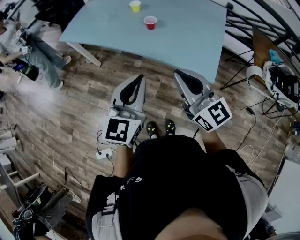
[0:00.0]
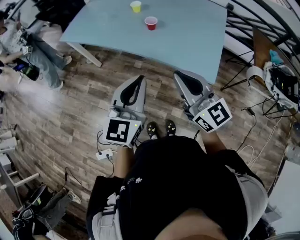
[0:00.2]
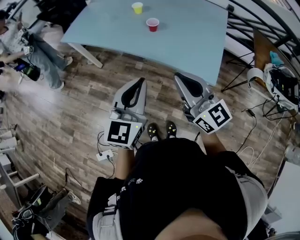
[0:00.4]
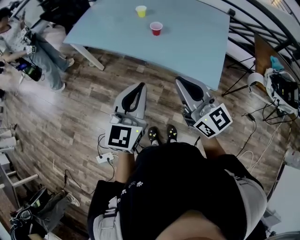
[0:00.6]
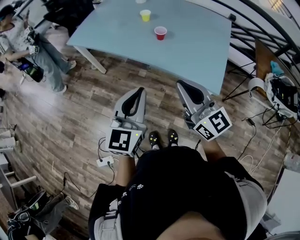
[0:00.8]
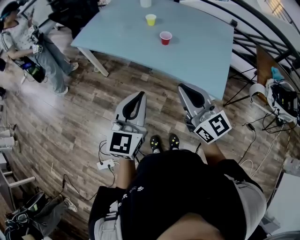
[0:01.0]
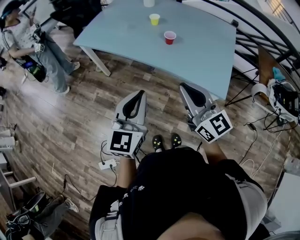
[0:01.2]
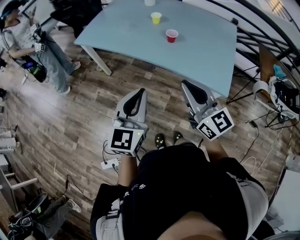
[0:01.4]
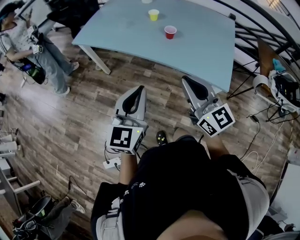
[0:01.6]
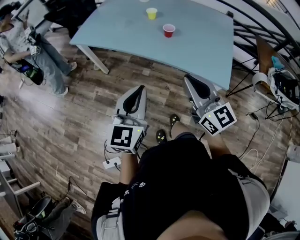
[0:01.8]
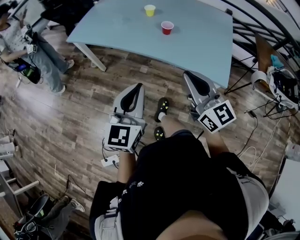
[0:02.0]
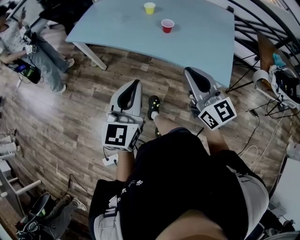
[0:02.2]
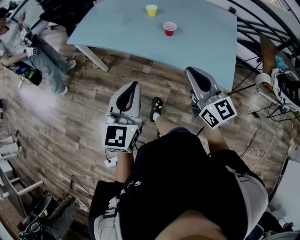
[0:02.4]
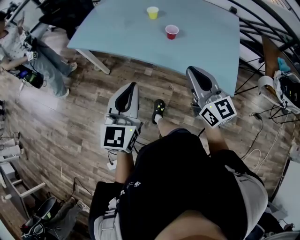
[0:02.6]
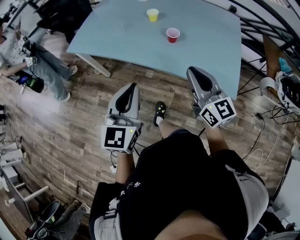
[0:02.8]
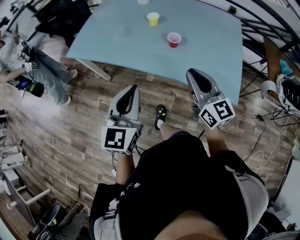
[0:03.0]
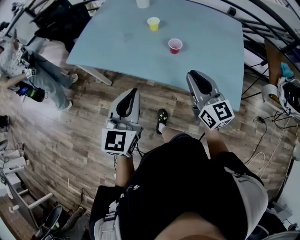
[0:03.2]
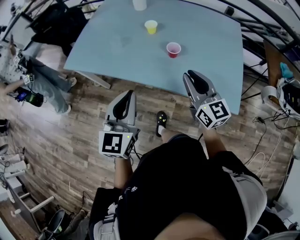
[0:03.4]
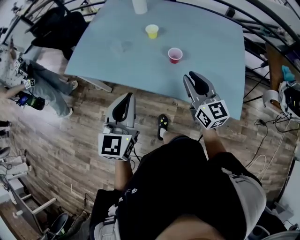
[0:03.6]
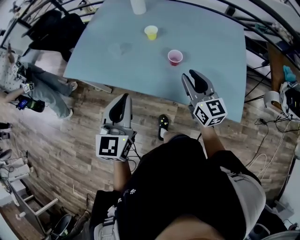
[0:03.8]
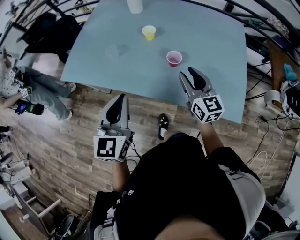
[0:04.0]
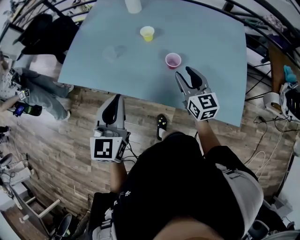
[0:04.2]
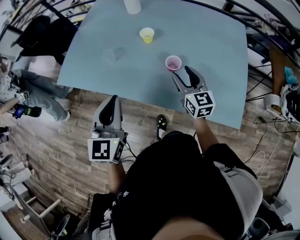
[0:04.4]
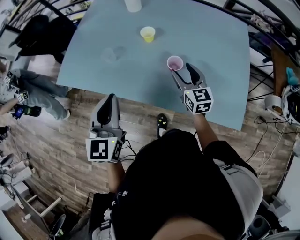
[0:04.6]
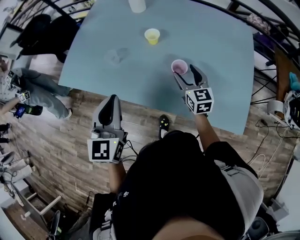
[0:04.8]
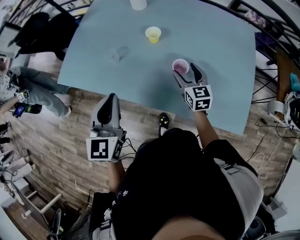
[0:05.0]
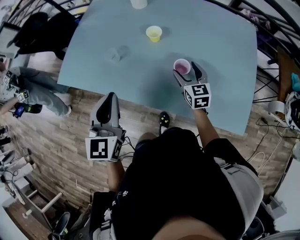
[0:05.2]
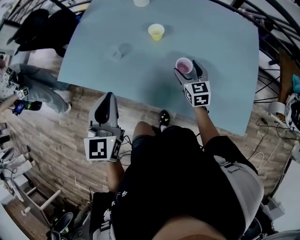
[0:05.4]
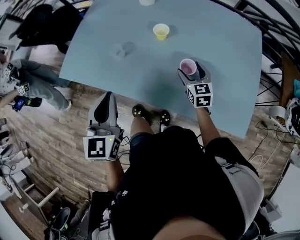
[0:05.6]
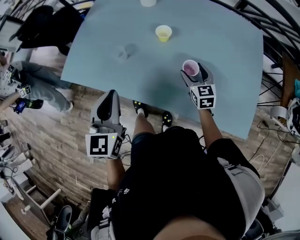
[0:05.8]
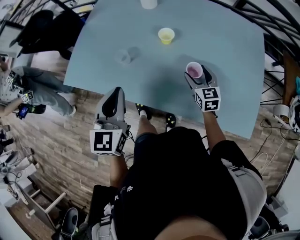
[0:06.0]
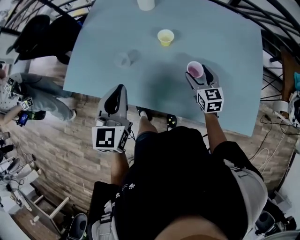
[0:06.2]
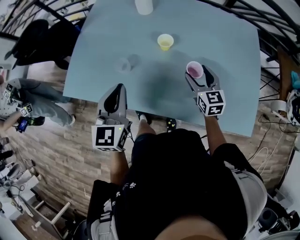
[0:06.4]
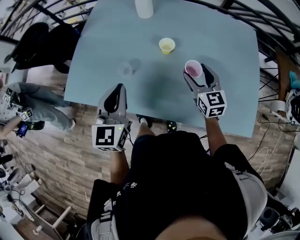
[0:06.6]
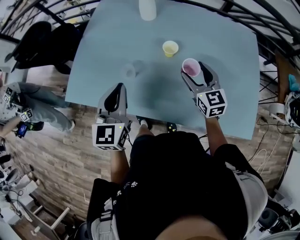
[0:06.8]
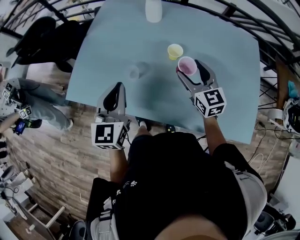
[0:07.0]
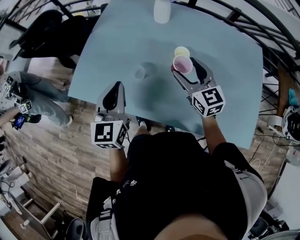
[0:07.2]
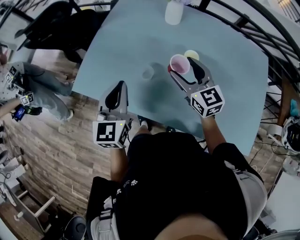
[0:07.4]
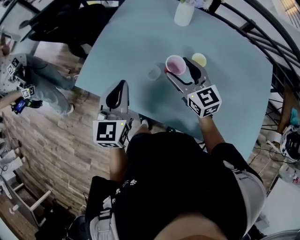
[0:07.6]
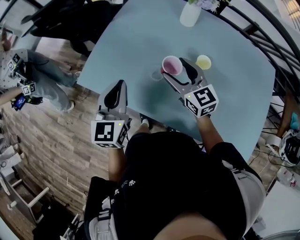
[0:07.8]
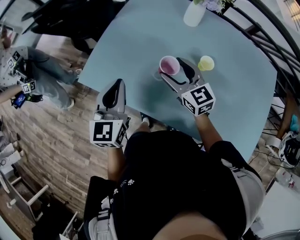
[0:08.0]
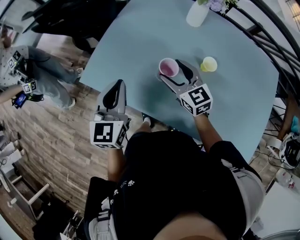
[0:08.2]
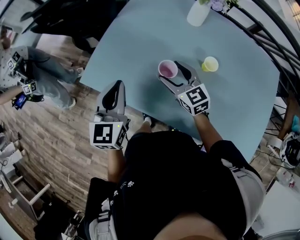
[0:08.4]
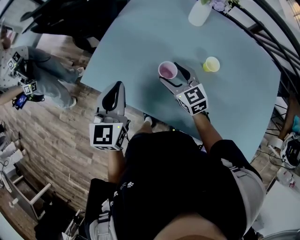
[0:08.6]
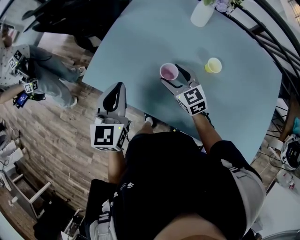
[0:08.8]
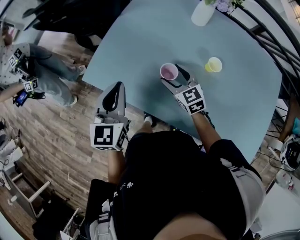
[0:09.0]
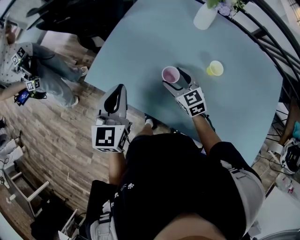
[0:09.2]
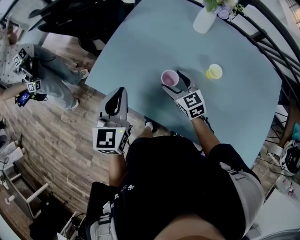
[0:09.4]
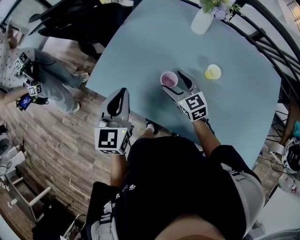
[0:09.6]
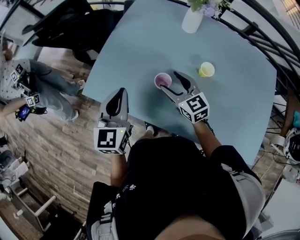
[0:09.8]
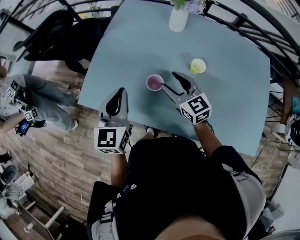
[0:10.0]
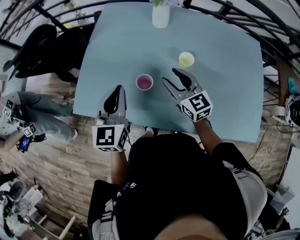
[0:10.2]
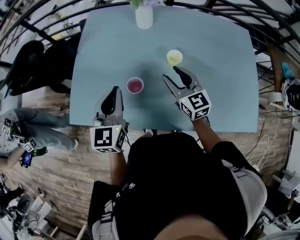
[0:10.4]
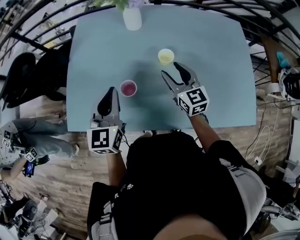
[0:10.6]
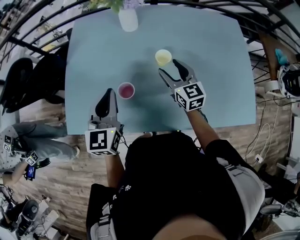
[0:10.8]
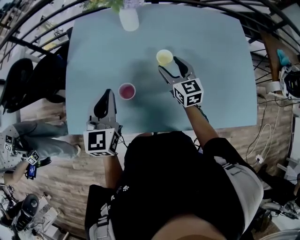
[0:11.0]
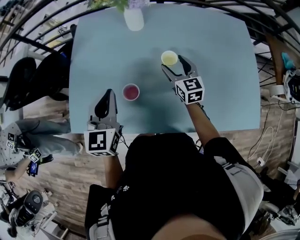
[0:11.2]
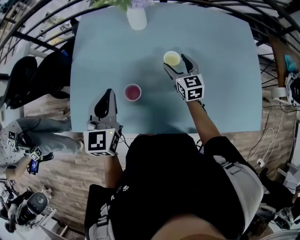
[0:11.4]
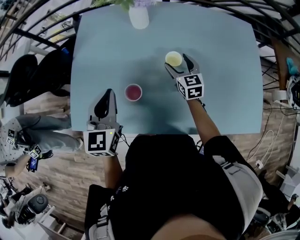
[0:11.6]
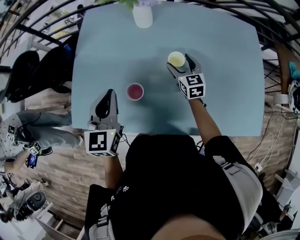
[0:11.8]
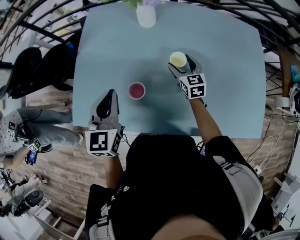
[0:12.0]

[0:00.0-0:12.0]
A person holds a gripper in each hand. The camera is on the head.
0.0 to 1.6 s: The grippers both shift to the left by some 10 cm.
1.6 to 3.0 s: The two grippers go roughly 15 cm forward.
3.0 to 4.4 s: The right gripper is displaced forward and downward by roughly 25 cm, and opens its fingers; the left gripper travels forward by some 20 cm.
4.4 to 6.0 s: The right gripper moves forward and downward, approximately 10 cm. Meanwhile the left gripper moves forward and to the left, roughly 10 cm.
6.0 to 7.6 s: The right gripper travels to the left, upward and forward by roughly 30 cm, and changes its angle by about 30 degrees. Meanwhile the left gripper moves to the left and forward, about 20 cm.
7.6 to 9.0 s: The right gripper is displaced downward and to the left by roughly 15 cm; the left gripper heads to the left, covering about 5 cm.
9.0 to 10.4 s: The right gripper heads to the right and upward, covering about 15 cm, swivels roughly 30 degrees, and closes its fingers; the left gripper goes about 10 cm to the right, and turns by some 20 degrees.
10.4 to 12.0 s: The right gripper travels forward, downward and to the right by approximately 15 cm, and opens up.

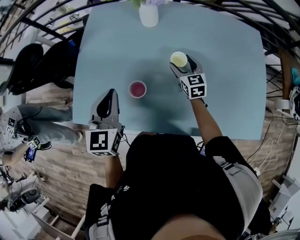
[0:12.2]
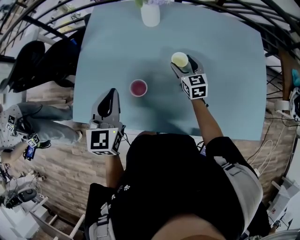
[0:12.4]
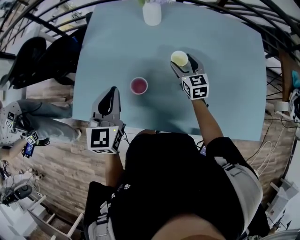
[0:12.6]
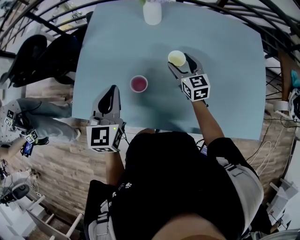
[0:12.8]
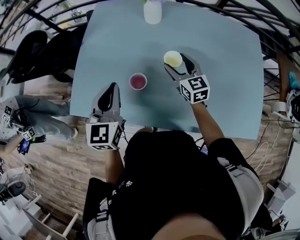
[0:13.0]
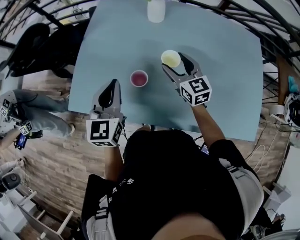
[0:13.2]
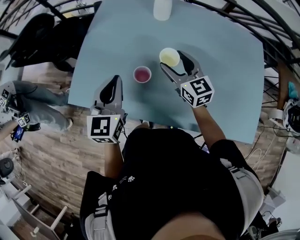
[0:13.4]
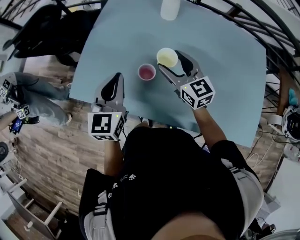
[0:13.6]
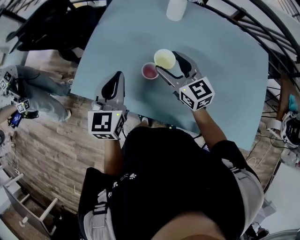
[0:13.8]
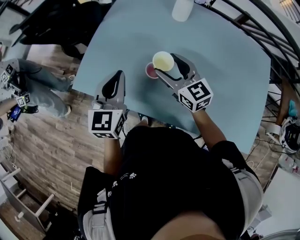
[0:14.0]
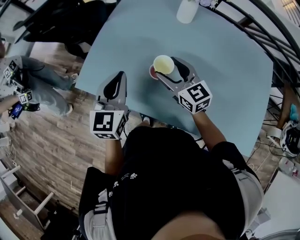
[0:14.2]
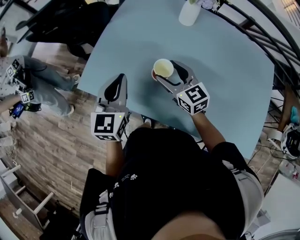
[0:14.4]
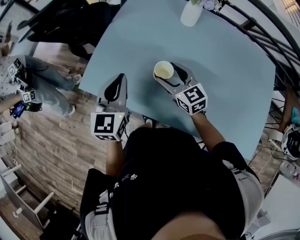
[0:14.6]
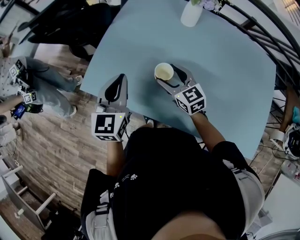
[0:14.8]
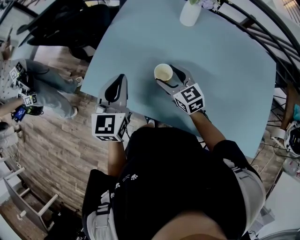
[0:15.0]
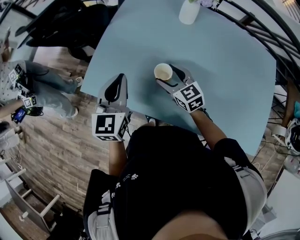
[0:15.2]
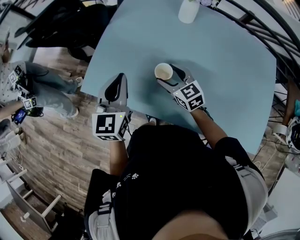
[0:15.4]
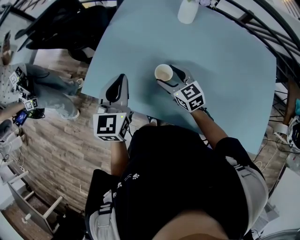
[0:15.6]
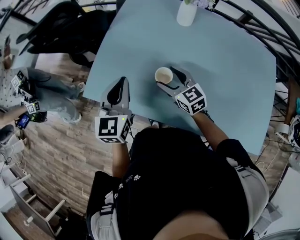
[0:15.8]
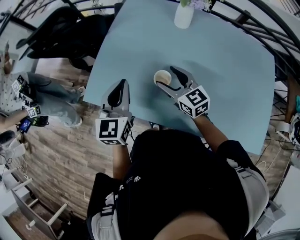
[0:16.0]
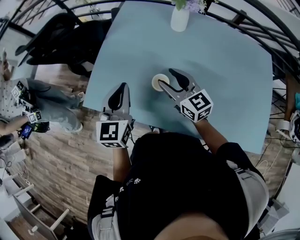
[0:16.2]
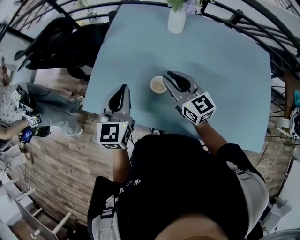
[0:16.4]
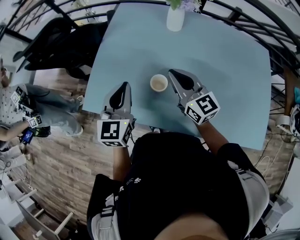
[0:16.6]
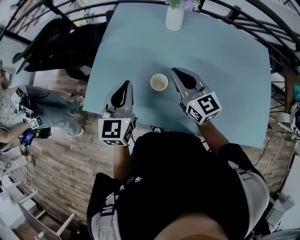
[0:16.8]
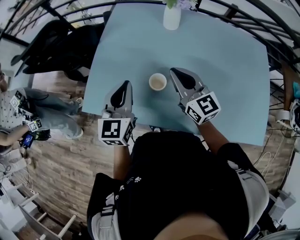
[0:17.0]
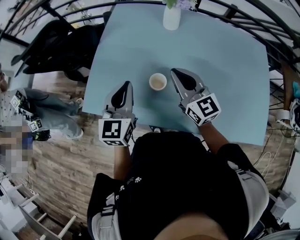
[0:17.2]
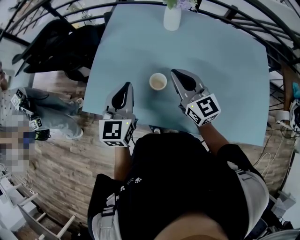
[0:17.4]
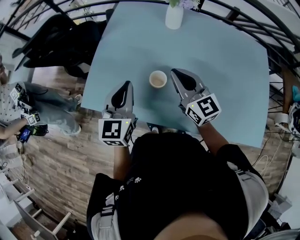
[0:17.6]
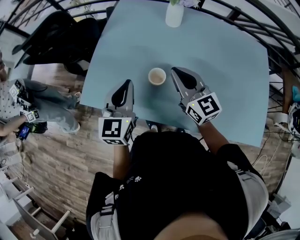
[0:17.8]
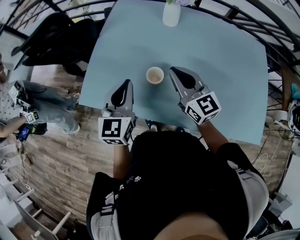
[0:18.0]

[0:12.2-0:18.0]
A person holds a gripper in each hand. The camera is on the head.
12.2 to 13.6 s: The left gripper shifts by about 5 cm; the right gripper moves to the left, upward and backward, about 20 cm, and swivels some 30 degrees.
13.6 to 15.0 s: The right gripper shifts roughly 10 cm to the left and downward; the left gripper travels to the left by some 5 cm.
15.0 to 16.6 s: The right gripper moves upward, some 10 cm, rotates roughly 20 degrees, and closes its fingers.
16.6 to 18.0 s: The grippers make only small movements.

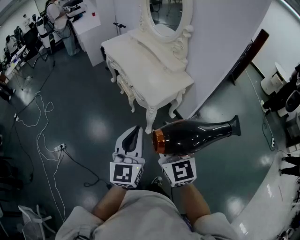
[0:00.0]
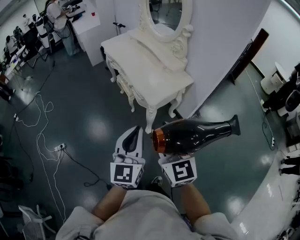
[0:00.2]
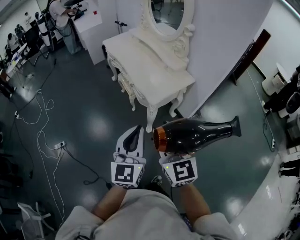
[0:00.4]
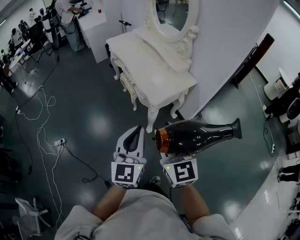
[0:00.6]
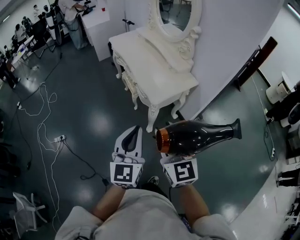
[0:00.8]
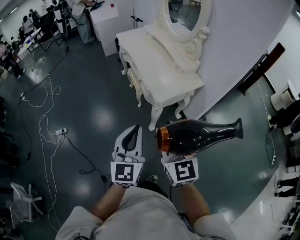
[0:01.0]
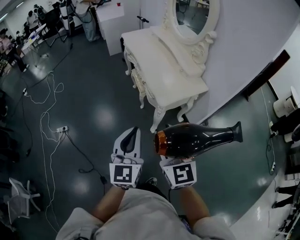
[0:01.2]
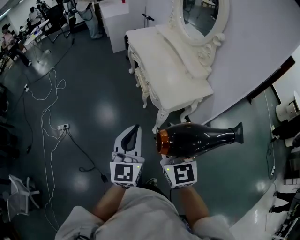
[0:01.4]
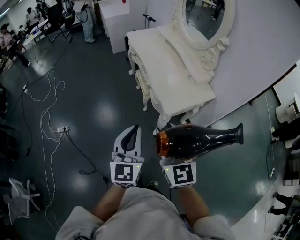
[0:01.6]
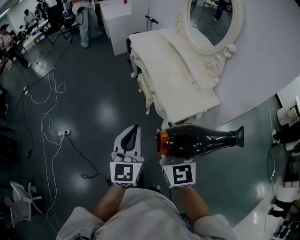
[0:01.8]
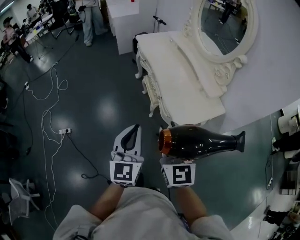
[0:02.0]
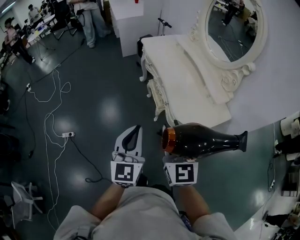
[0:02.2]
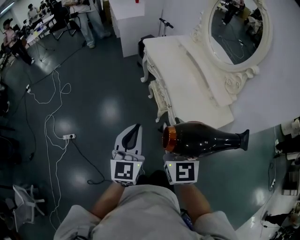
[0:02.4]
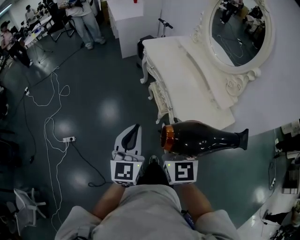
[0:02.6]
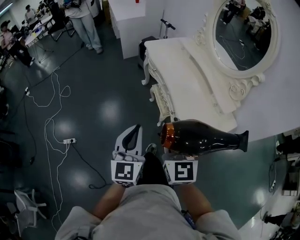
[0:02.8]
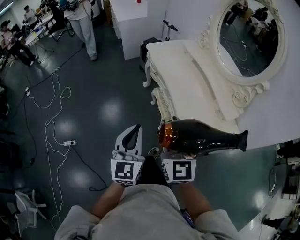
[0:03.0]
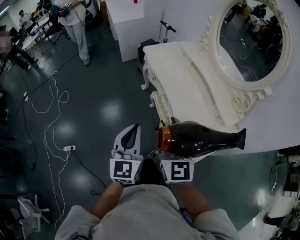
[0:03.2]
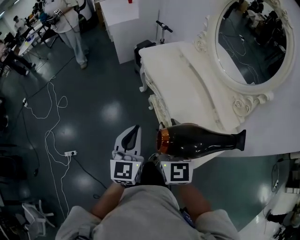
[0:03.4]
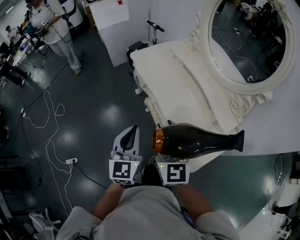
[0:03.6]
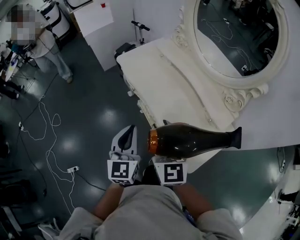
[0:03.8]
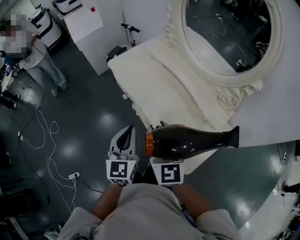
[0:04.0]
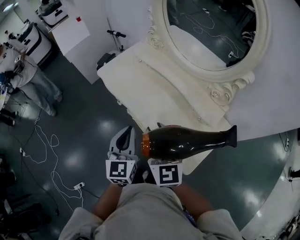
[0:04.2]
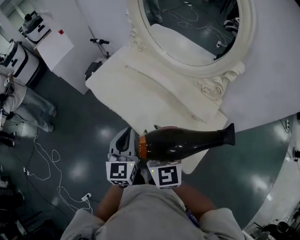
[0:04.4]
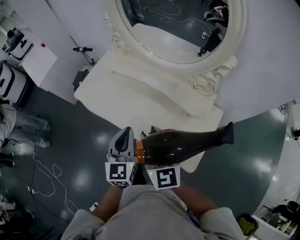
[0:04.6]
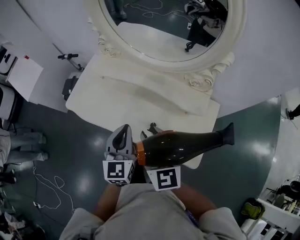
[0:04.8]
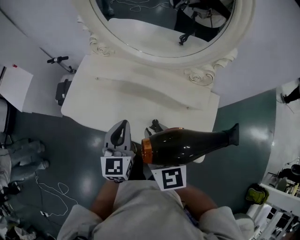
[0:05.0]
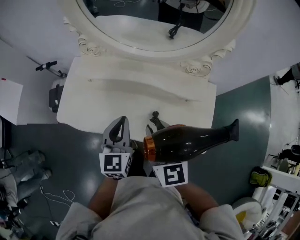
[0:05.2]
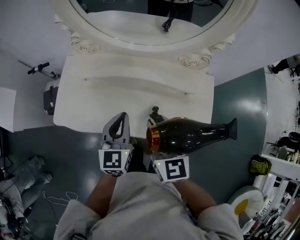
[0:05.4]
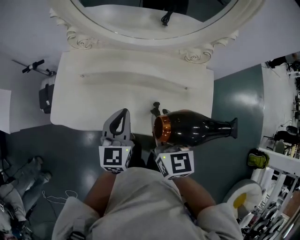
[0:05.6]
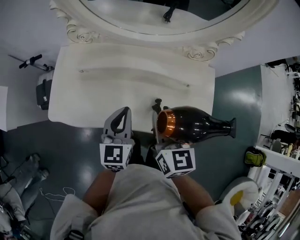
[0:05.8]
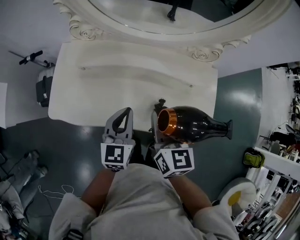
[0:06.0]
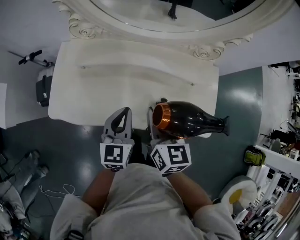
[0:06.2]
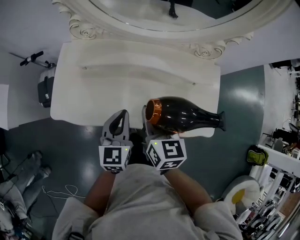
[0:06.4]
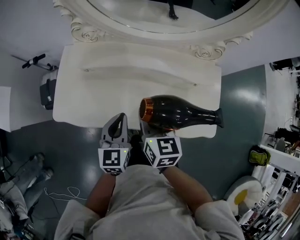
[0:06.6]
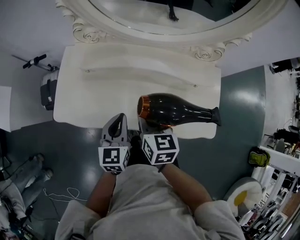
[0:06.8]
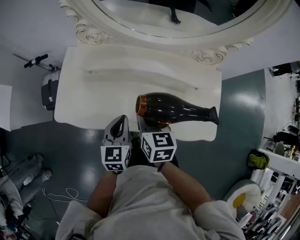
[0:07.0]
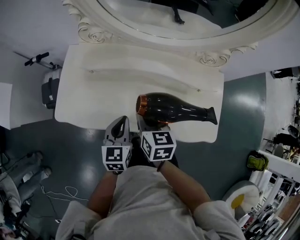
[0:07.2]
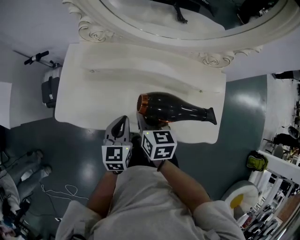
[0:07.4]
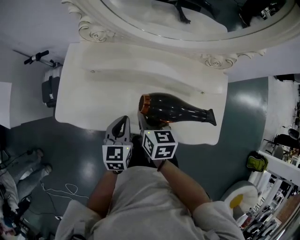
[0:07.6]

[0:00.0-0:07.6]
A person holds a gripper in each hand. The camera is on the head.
0.0 to 1.6 s: The right gripper goes about 10 cm forward. The left gripper shifts about 10 cm forward and to the left.
1.6 to 3.0 s: The two grippers go some 30 cm forward and to the left.
3.0 to 4.6 s: The left gripper shifts by roughly 35 cm, and turns by some 30 degrees. The right gripper moves approximately 30 cm, and rotates approximately 30 degrees.
4.6 to 6.0 s: The left gripper ends up some 15 cm from where it was, and turns by about 30 degrees. Meanwhile the right gripper moves roughly 15 cm, and swivels approximately 40 degrees.
6.0 to 7.6 s: The two grippers go some 10 cm downward and to the left. The right gripper rotates roughly 20 degrees.
